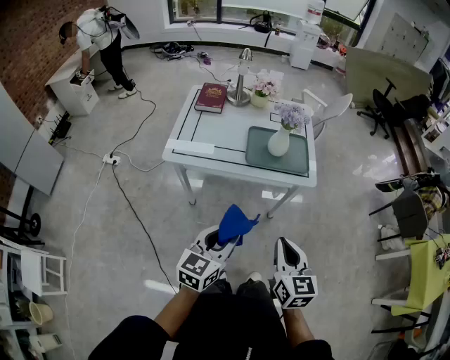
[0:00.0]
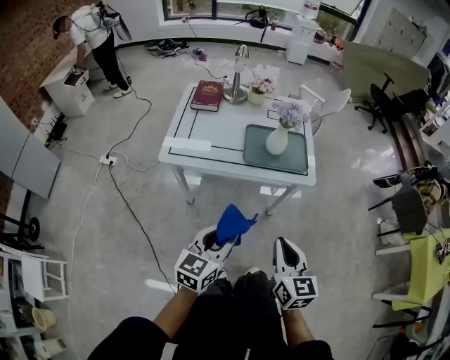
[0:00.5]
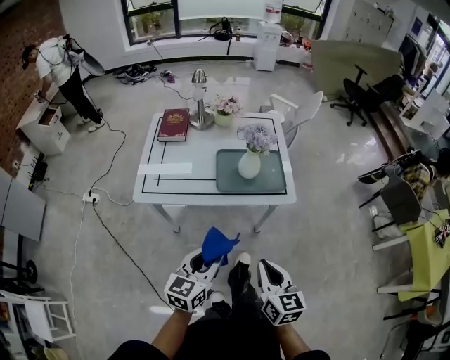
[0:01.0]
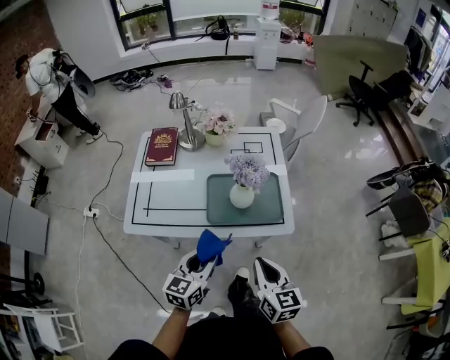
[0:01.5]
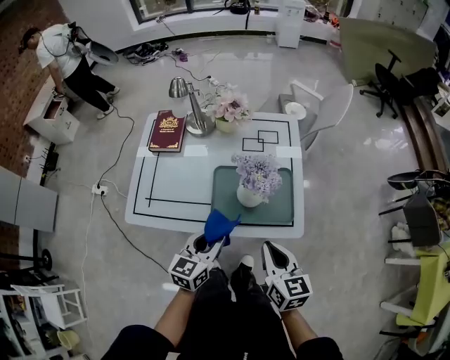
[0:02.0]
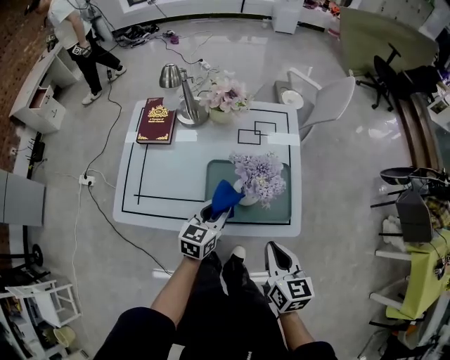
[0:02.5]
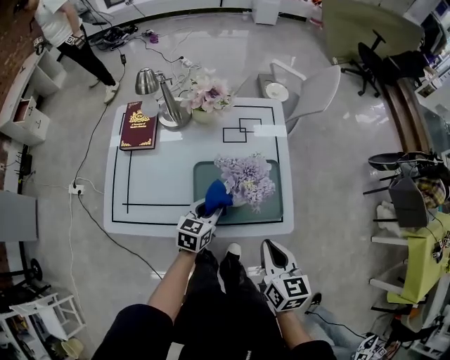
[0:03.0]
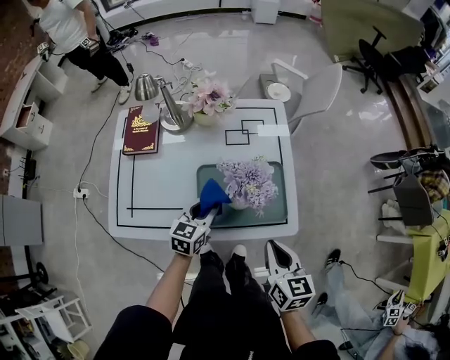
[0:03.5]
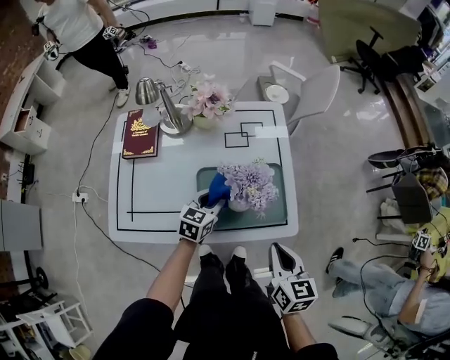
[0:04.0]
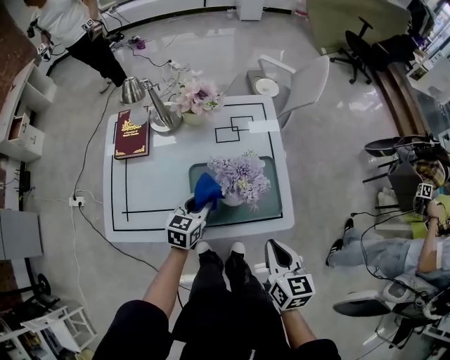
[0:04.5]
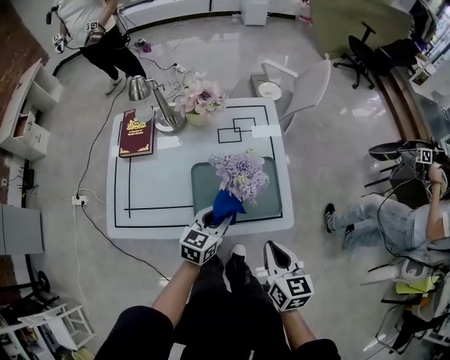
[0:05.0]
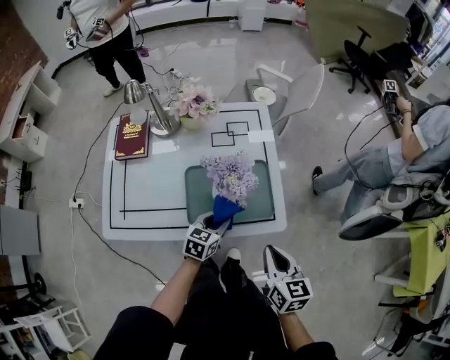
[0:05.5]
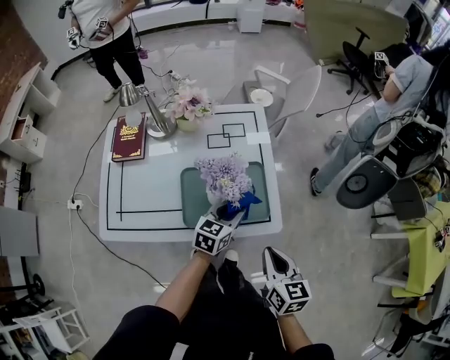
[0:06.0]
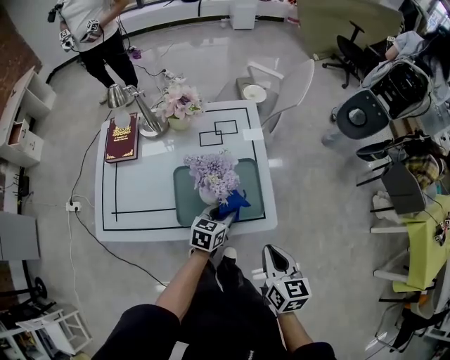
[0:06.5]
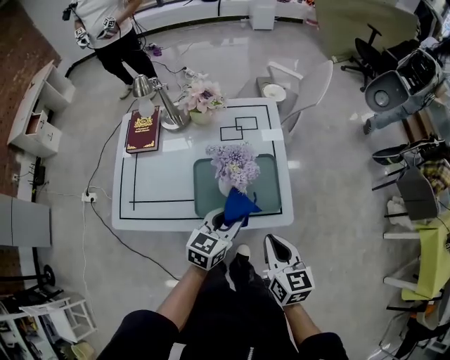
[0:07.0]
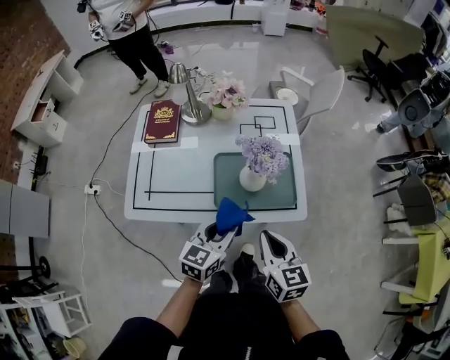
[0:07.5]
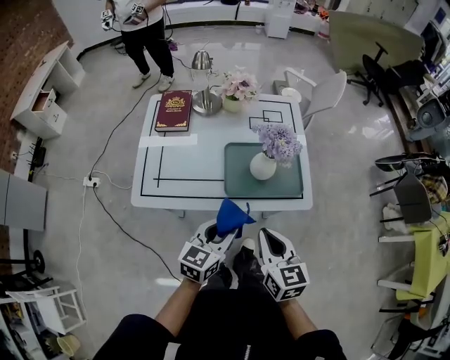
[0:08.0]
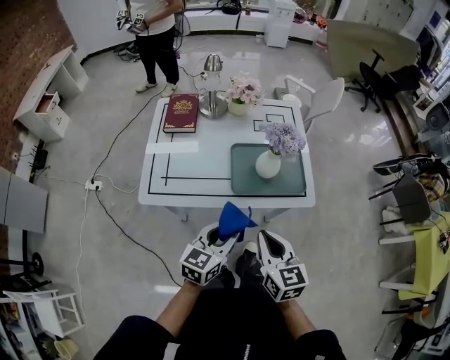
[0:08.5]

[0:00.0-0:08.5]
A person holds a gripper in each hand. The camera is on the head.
0.0 to 2.0 s: The two grippers go about 30 cm forward.
2.0 to 4.0 s: The right gripper ends up approximately 5 cm from where it was. The left gripper goes approximately 20 cm forward and downward.
4.0 to 6.5 s: The left gripper moves to the right, about 15 cm. Meanwhile the right gripper shifts about 5 cm to the right.
6.5 to 8.5 s: The left gripper moves backward, to the left and upward, some 35 cm, while the right gripper goes roughly 25 cm to the left and backward.

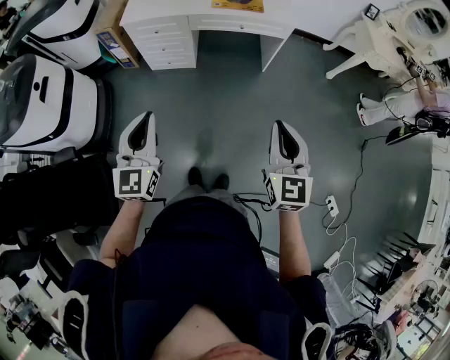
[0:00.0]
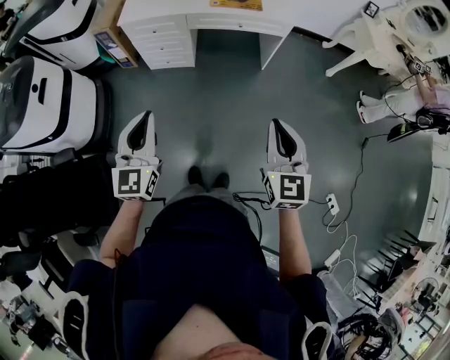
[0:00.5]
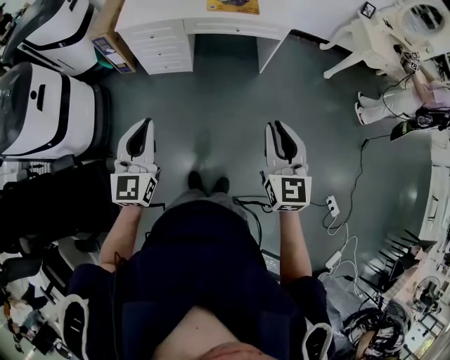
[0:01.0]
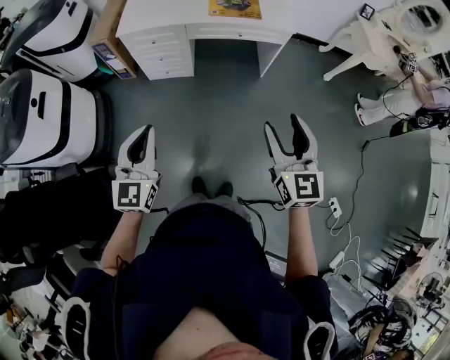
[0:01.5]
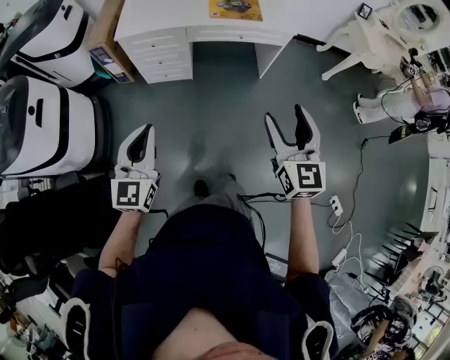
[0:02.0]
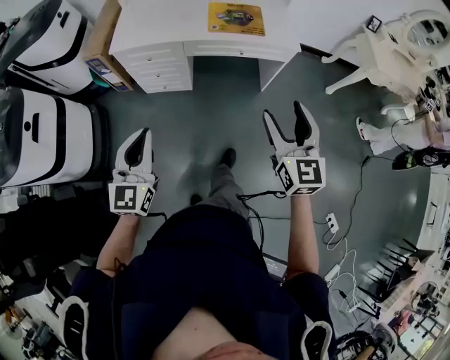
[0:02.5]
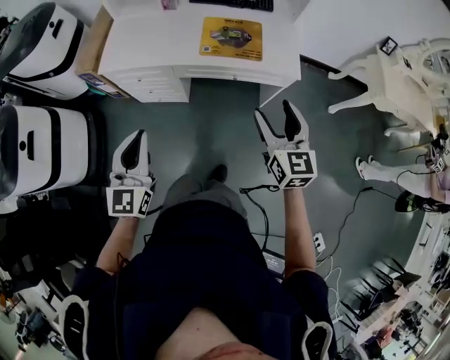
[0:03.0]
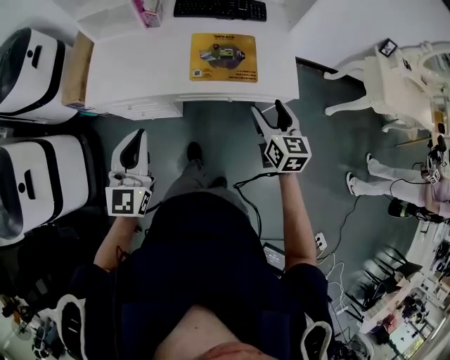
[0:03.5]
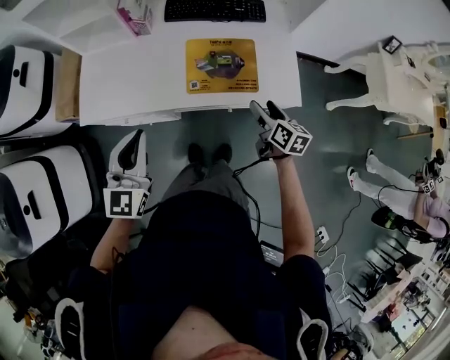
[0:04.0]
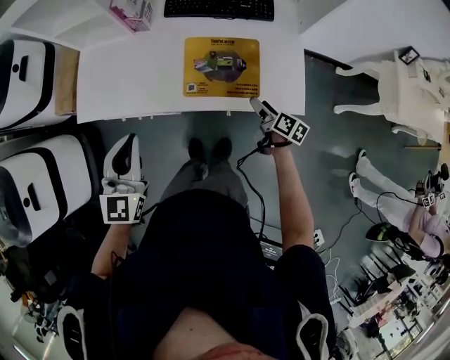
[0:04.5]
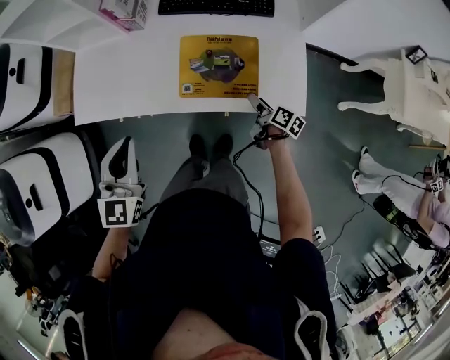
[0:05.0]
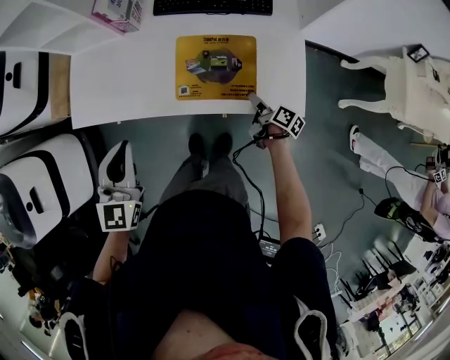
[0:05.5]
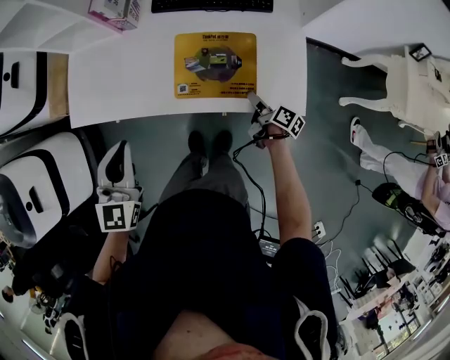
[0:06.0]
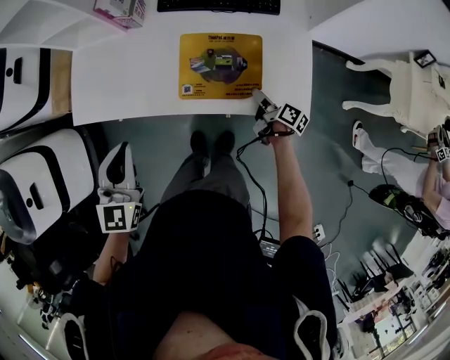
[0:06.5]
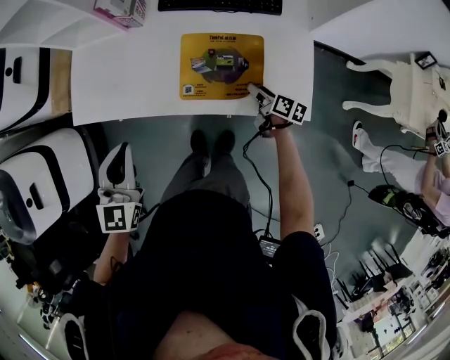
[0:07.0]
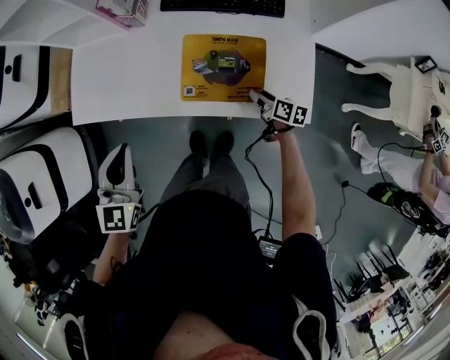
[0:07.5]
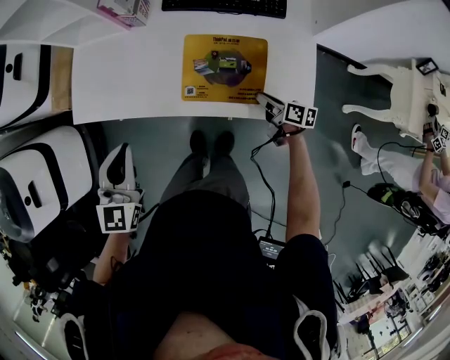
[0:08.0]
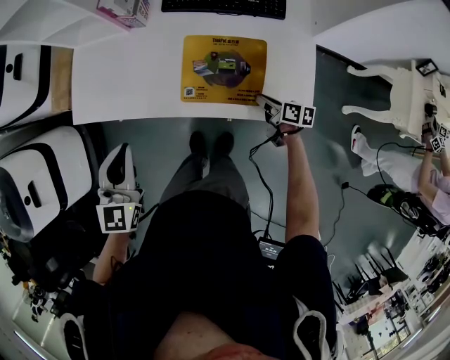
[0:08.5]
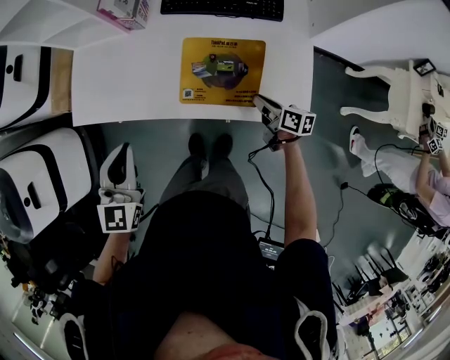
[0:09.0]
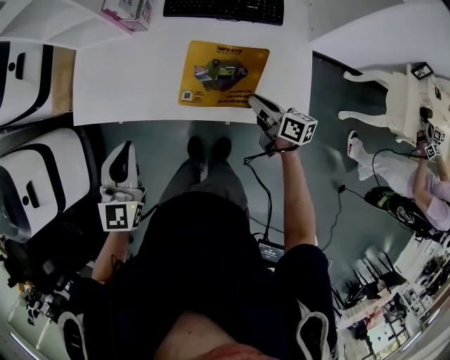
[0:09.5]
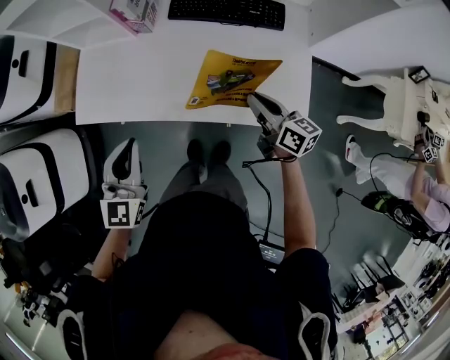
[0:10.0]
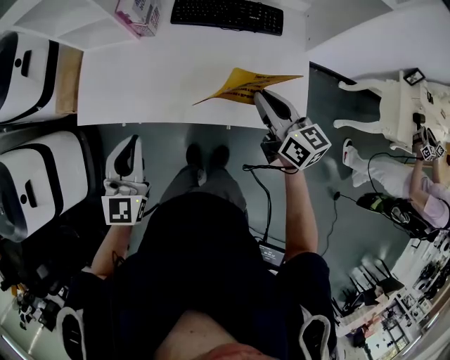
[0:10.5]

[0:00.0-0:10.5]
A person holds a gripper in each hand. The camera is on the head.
0.0 to 2.0 s: The right gripper shifts roughly 10 cm forward and to the left, and opens its fingers, while the left gripper goes approximately 10 cm to the left and forward.
2.0 to 4.0 s: Both grippers are carried forward, some 50 cm. The right gripper swivels roughly 50 degrees.
4.0 to 6.5 s: The right gripper is displaced downward and forward by some 20 cm, and changes its angle by about 40 degrees; the left gripper ends up roughly 5 cm from where it was.
6.5 to 8.5 s: The right gripper turns by approximately 30 degrees, and closes.
8.5 to 10.5 s: The right gripper goes some 25 cm upward, and swivels approximately 40 degrees.

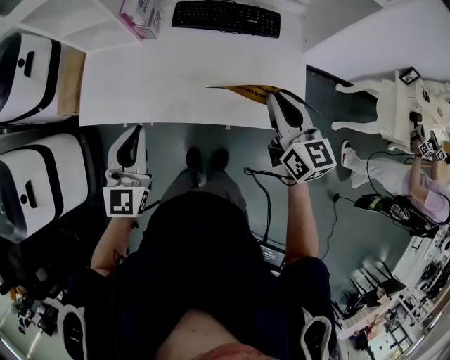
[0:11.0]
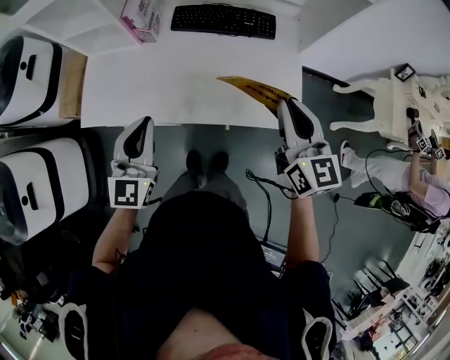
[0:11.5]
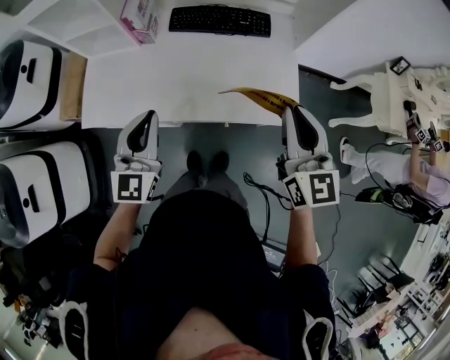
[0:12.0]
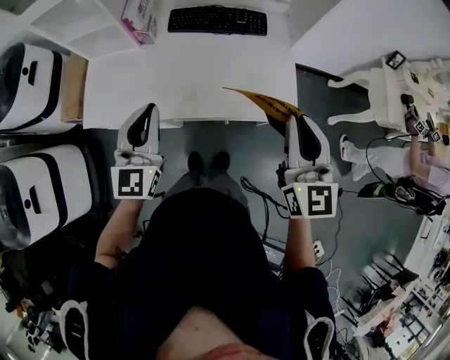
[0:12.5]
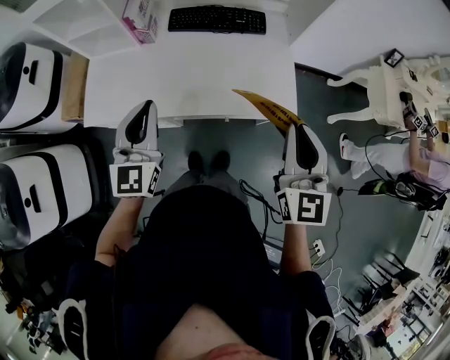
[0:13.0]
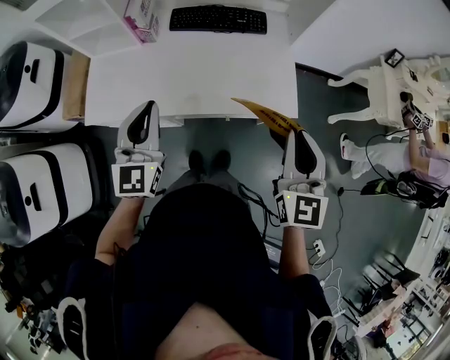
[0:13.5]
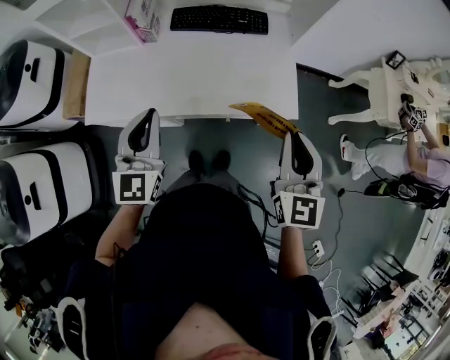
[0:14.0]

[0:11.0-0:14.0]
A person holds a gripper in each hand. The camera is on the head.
11.0 to 12.5 s: The left gripper moves upward, roughly 5 cm. Meanwhile the right gripper is displaced backward and upward by some 15 cm, and changes its angle by approximately 20 degrees.
12.5 to 14.0 s: The right gripper ends up about 5 cm from where it was.

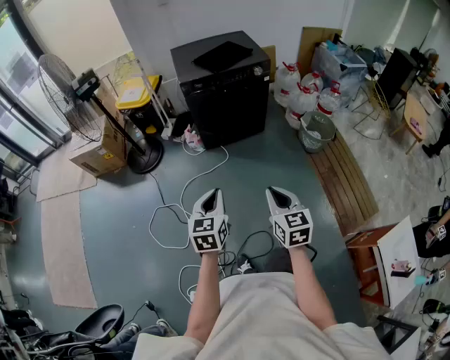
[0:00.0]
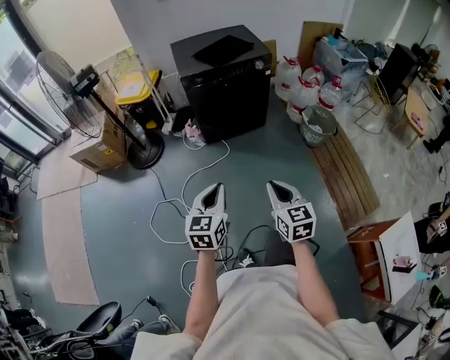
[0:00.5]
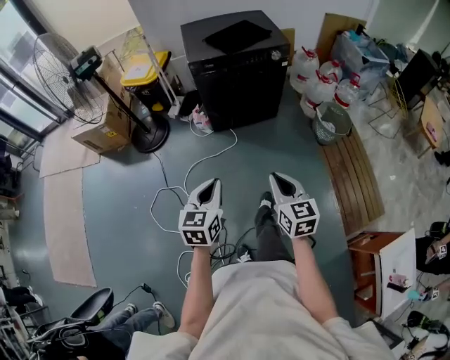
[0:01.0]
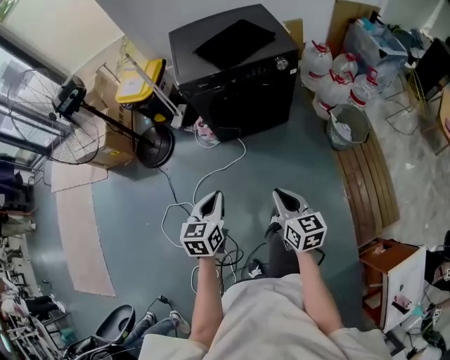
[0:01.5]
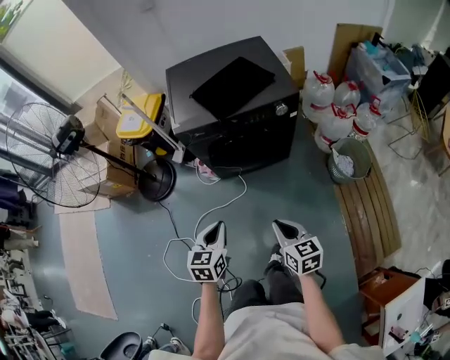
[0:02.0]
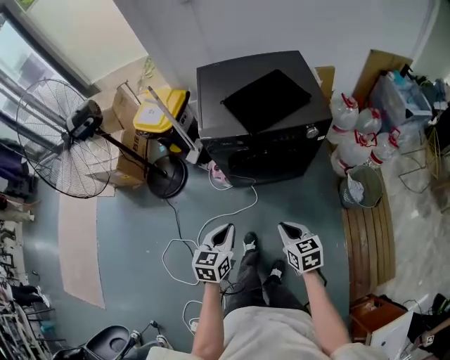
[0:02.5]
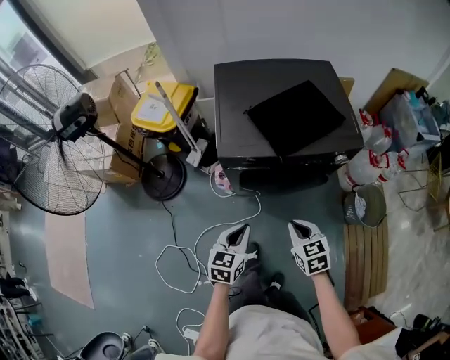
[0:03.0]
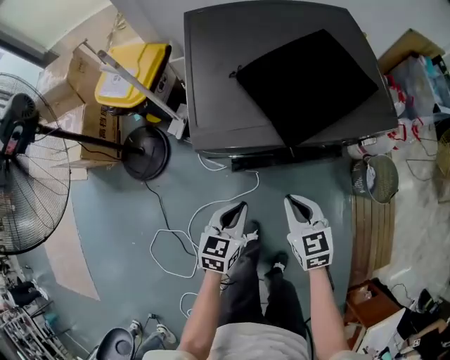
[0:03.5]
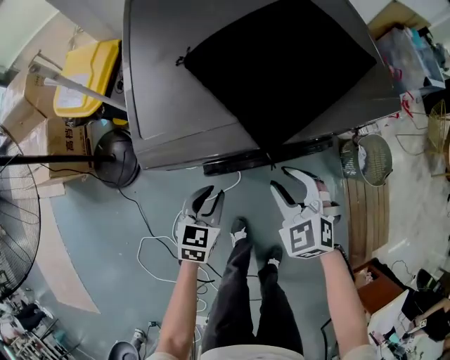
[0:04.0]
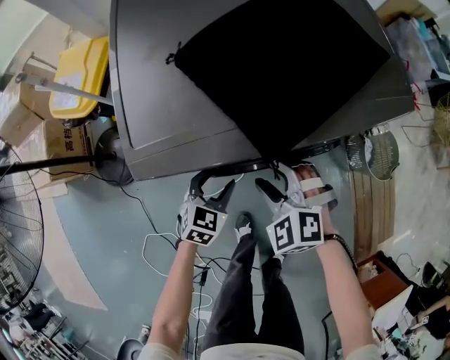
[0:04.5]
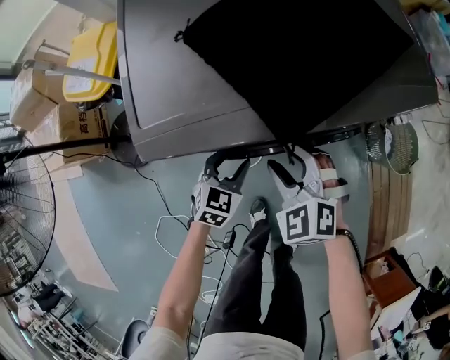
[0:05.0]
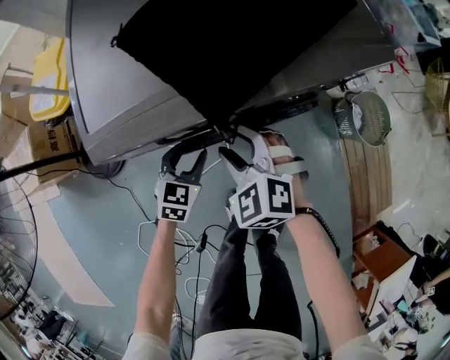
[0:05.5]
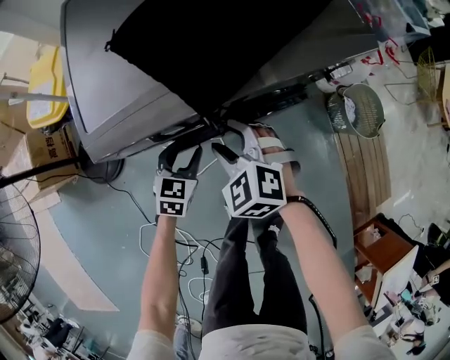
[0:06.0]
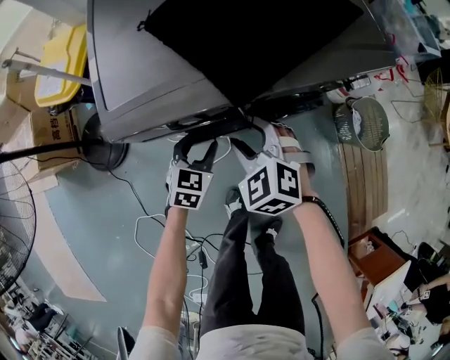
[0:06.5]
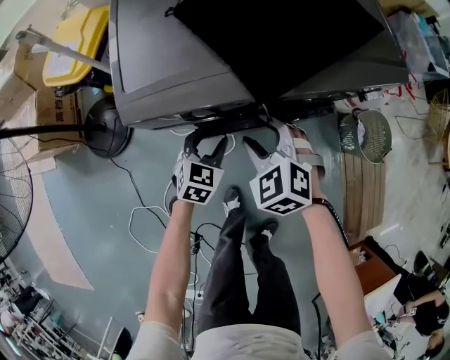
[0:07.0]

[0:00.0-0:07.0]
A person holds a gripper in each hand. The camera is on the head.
0.0 to 2.0 s: The two grippers go some 30 cm forward. The right gripper swivels roughly 20 degrees.
2.0 to 3.5 s: The right gripper is displaced forward by about 30 cm, and turns by some 20 degrees, while the left gripper is displaced forward and downward by approximately 30 cm.
3.5 to 5.0 s: The right gripper goes about 10 cm forward and downward, swivels roughly 40 degrees, and opens its fingers, while the left gripper is displaced downward and forward by some 15 cm, swivels about 30 degrees, and opens.
5.0 to 7.0 s: The grippers stay close to where they were, moving slightly.
